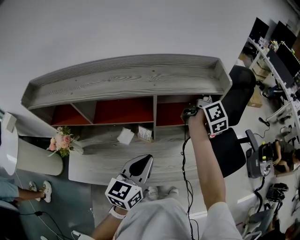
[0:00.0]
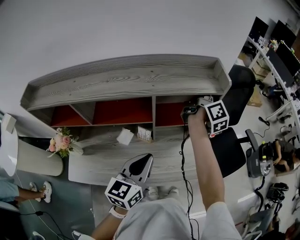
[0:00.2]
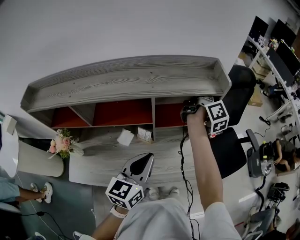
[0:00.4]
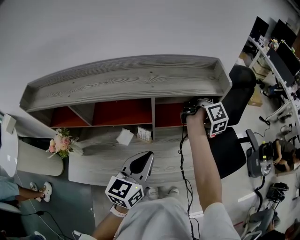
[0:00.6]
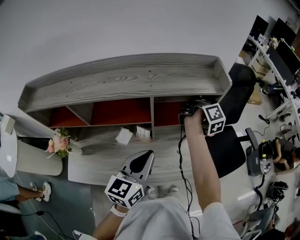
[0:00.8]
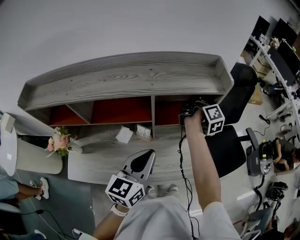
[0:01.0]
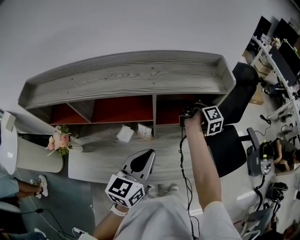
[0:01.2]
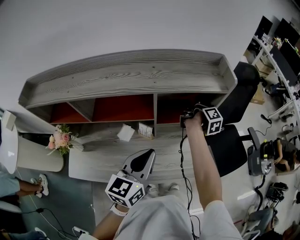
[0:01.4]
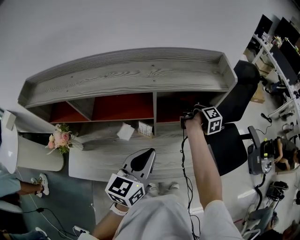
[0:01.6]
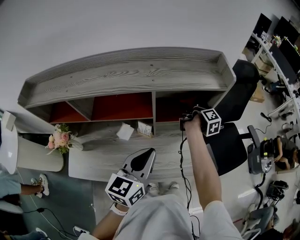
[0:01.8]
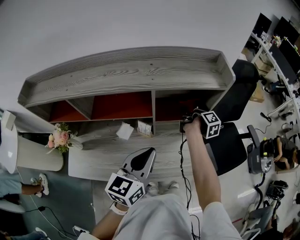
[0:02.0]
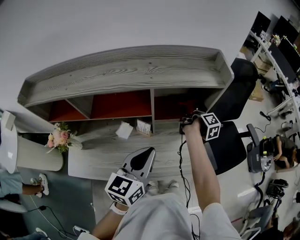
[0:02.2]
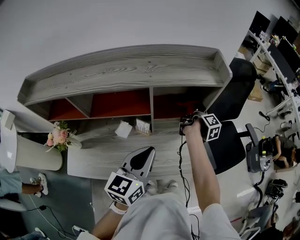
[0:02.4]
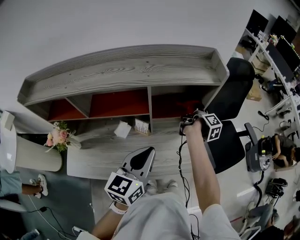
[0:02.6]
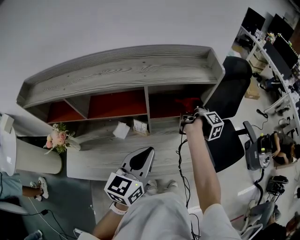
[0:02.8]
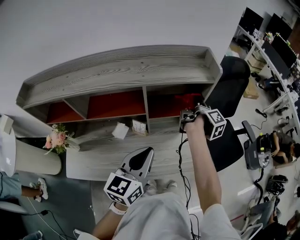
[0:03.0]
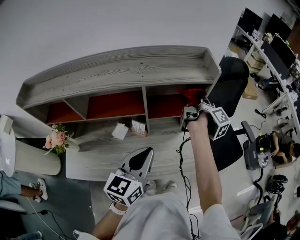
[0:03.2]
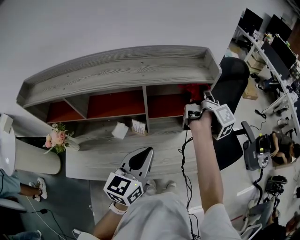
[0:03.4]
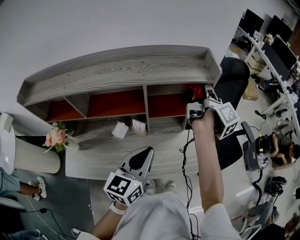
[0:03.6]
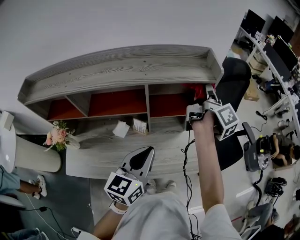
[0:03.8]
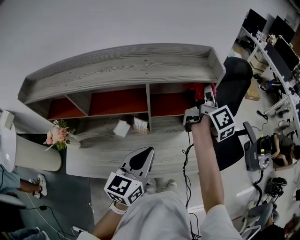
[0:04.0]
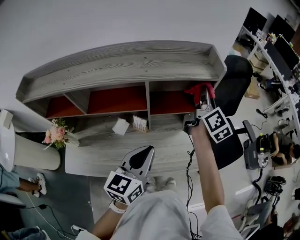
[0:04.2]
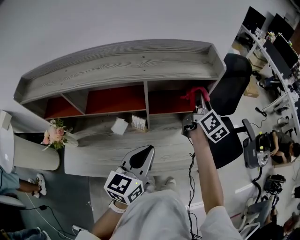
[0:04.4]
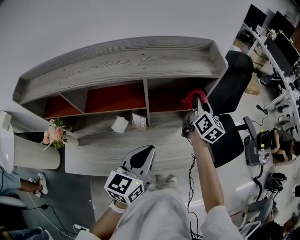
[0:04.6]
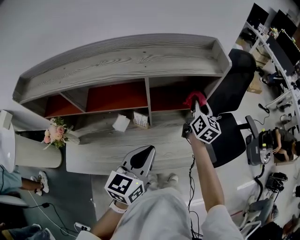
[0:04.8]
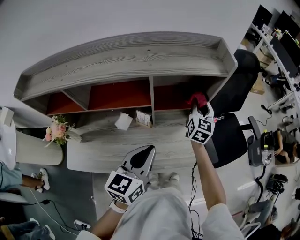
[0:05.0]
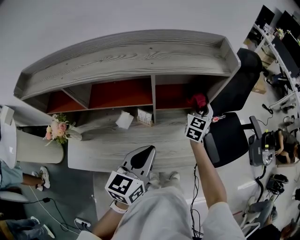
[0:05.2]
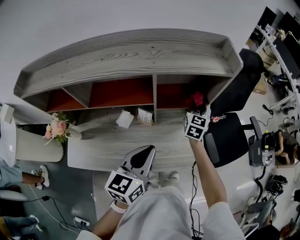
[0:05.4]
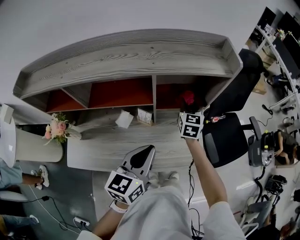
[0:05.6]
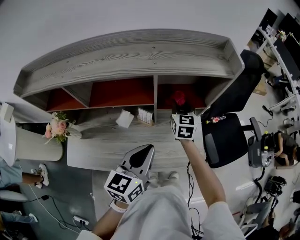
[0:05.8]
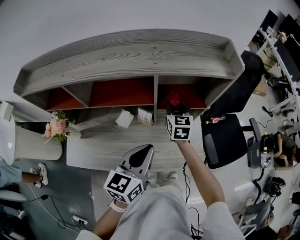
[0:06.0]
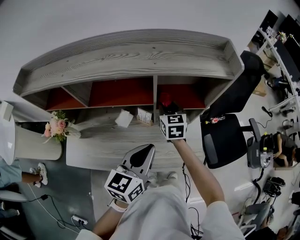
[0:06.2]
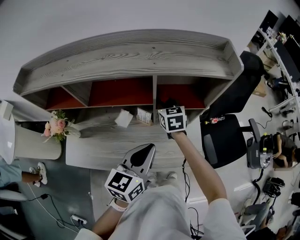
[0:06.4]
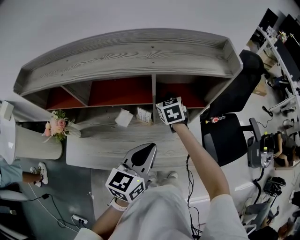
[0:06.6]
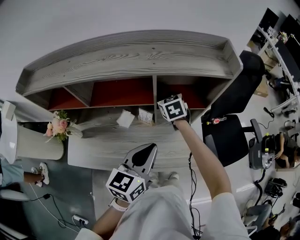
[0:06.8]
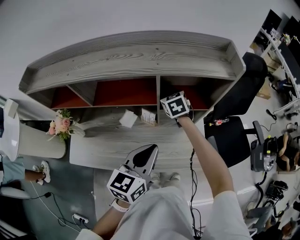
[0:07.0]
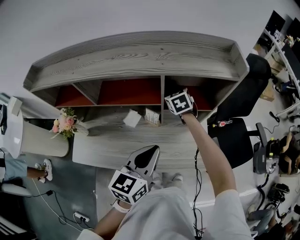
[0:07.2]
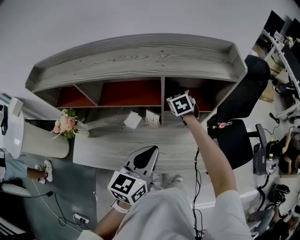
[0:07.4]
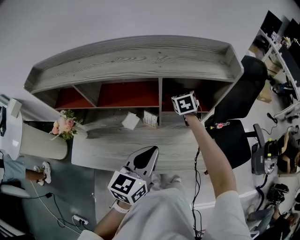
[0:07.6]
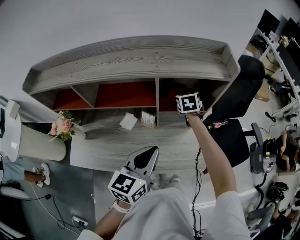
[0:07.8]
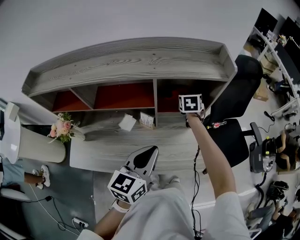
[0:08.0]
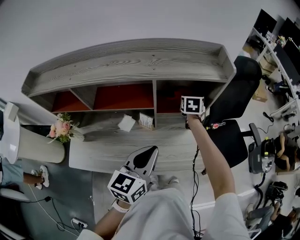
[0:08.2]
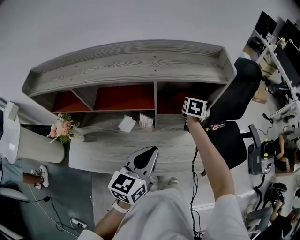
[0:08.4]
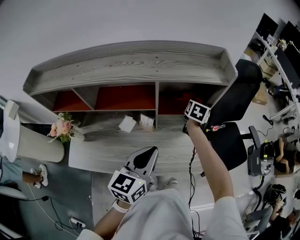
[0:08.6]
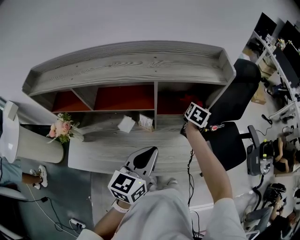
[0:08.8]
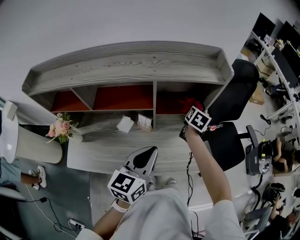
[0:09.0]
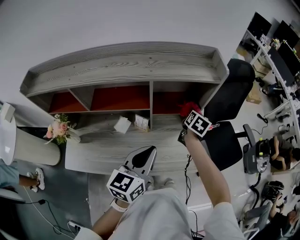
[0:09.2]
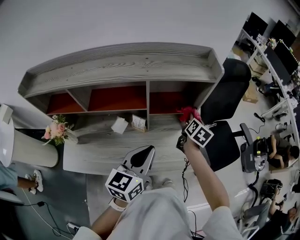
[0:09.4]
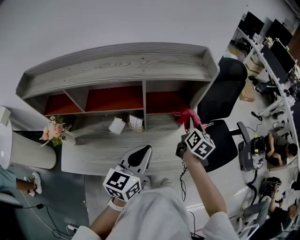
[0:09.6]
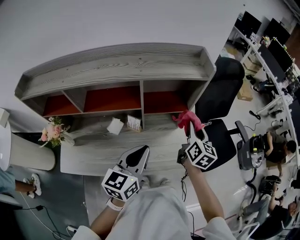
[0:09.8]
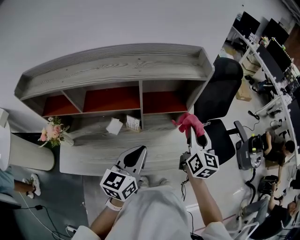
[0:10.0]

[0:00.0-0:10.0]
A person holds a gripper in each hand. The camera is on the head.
0:00.0 to 0:01.4: The right gripper travels downward by about 15 cm, and swivels about 30 degrees.
0:01.4 to 0:02.8: The right gripper goes approximately 5 cm backward.
0:02.8 to 0:04.2: The right gripper heads upward, covering roughly 15 cm, and rotates around the line of its fingers by some 40 degrees, counterclockwise from behind.
0:04.2 to 0:05.8: The right gripper goes some 25 cm downward and to the left, and rolls counterclockwise, seen from behind, by about 50 degrees.
0:05.8 to 0:07.2: The right gripper shifts some 10 cm to the left, and swivels about 30 degrees.
0:07.2 to 0:08.6: The right gripper heads to the right, covering approximately 20 cm, and turns by roughly 50 degrees.
0:08.6 to 0:10.0: The right gripper goes approximately 25 cm backward, upward and to the right, and tilts its fingers approximately 30 degrees upward.

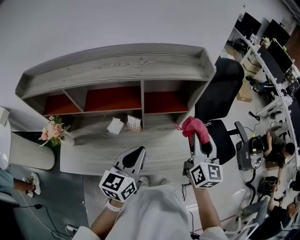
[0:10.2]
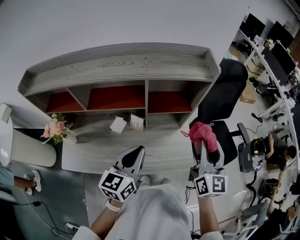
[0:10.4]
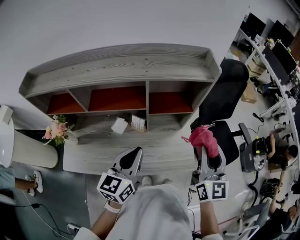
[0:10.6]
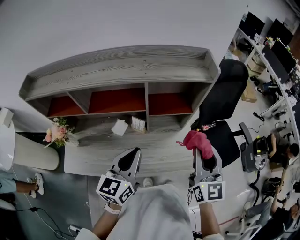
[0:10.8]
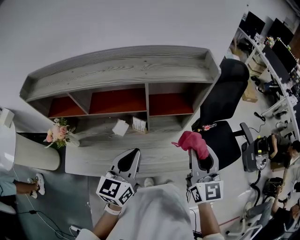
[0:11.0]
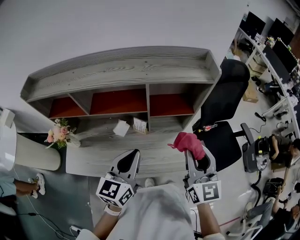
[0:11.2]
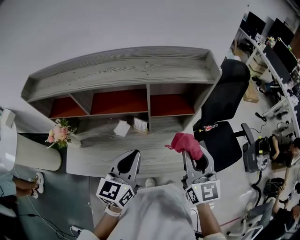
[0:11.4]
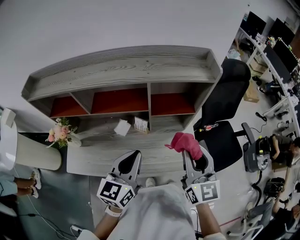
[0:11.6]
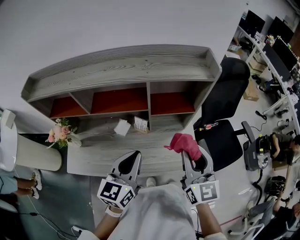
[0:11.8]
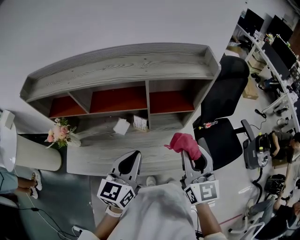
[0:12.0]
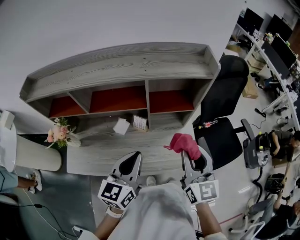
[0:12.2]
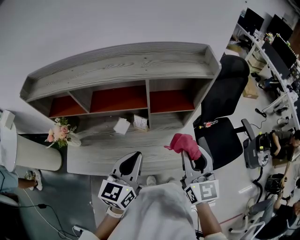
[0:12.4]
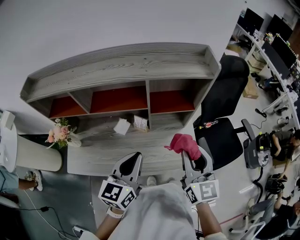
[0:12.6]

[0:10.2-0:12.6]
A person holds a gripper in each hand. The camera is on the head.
0:10.2 to 0:11.4: The right gripper travels to the left and backward by about 10 cm.
0:11.4 to 0:12.6: The grippers make only small movements.

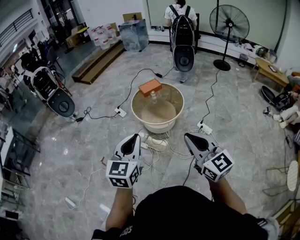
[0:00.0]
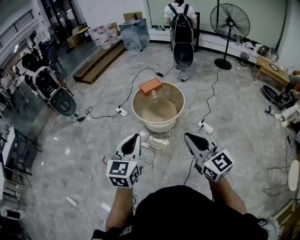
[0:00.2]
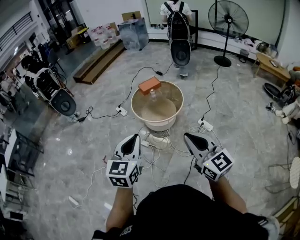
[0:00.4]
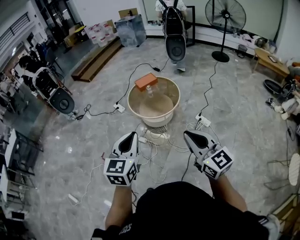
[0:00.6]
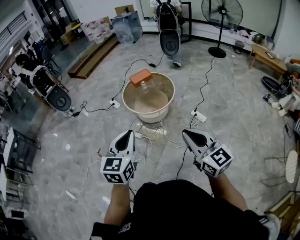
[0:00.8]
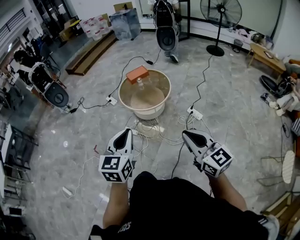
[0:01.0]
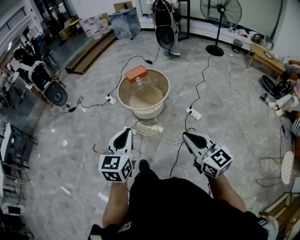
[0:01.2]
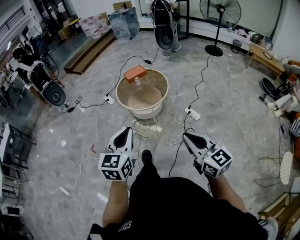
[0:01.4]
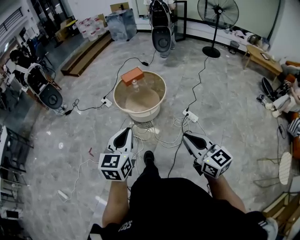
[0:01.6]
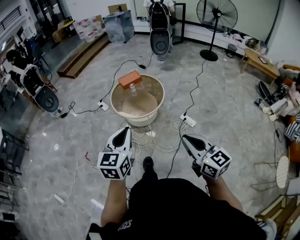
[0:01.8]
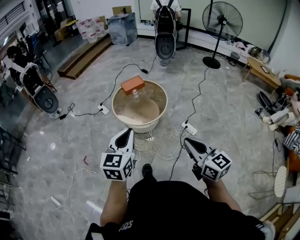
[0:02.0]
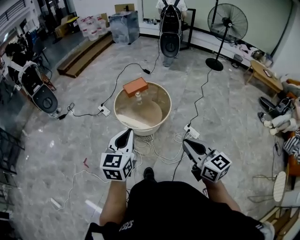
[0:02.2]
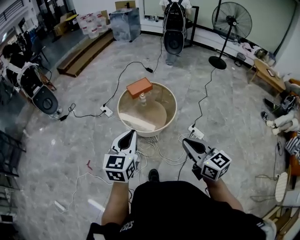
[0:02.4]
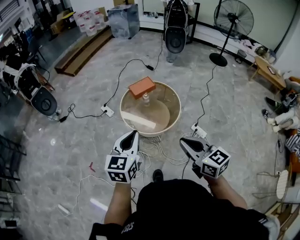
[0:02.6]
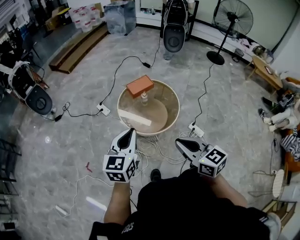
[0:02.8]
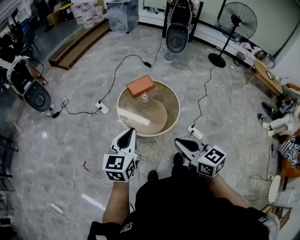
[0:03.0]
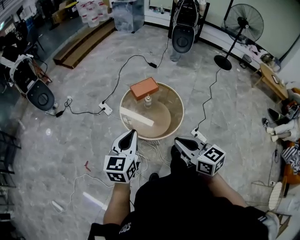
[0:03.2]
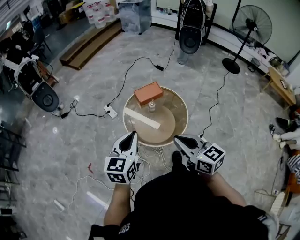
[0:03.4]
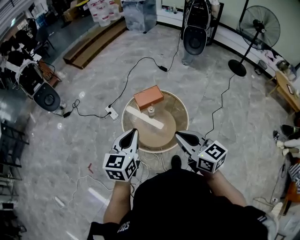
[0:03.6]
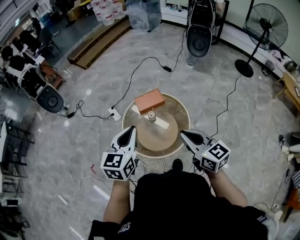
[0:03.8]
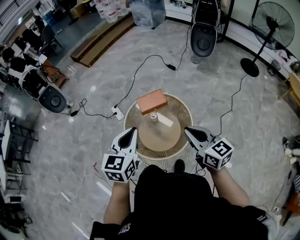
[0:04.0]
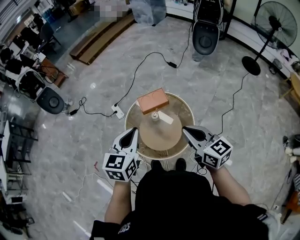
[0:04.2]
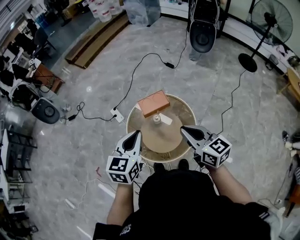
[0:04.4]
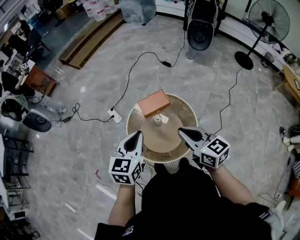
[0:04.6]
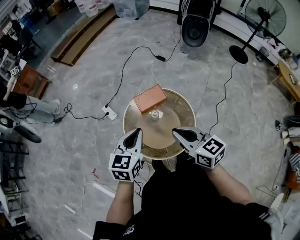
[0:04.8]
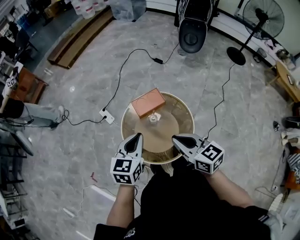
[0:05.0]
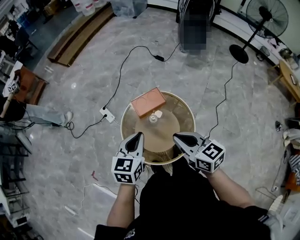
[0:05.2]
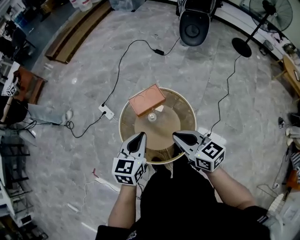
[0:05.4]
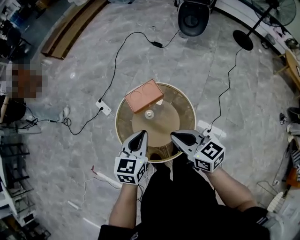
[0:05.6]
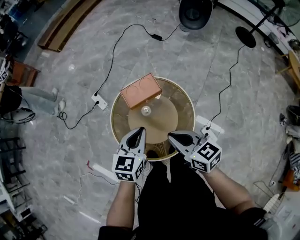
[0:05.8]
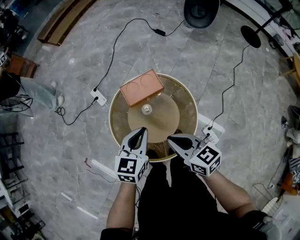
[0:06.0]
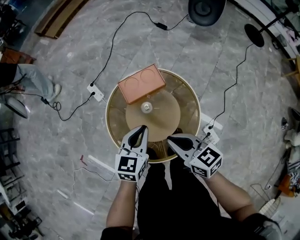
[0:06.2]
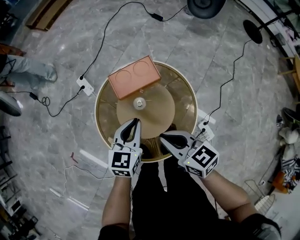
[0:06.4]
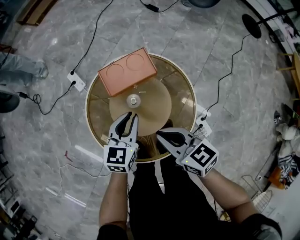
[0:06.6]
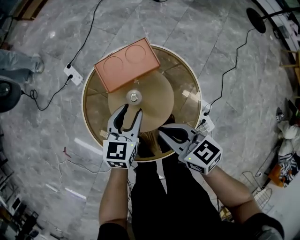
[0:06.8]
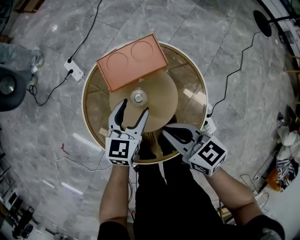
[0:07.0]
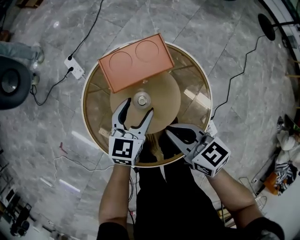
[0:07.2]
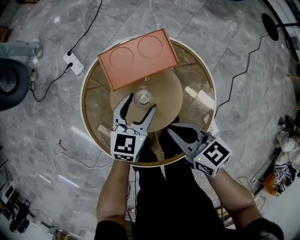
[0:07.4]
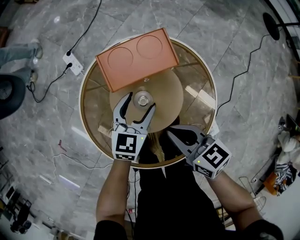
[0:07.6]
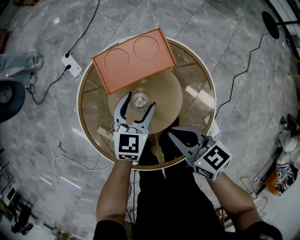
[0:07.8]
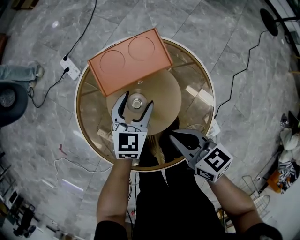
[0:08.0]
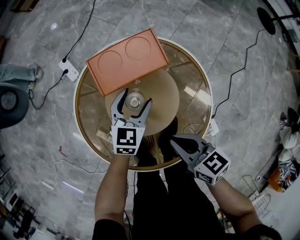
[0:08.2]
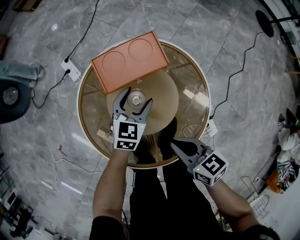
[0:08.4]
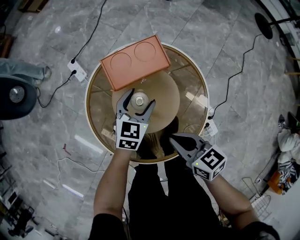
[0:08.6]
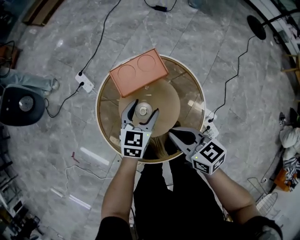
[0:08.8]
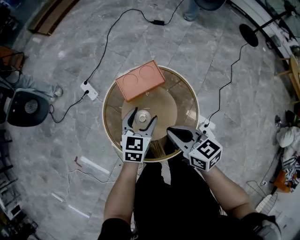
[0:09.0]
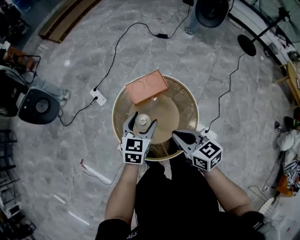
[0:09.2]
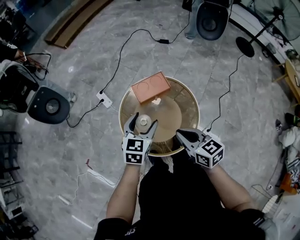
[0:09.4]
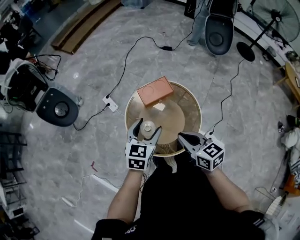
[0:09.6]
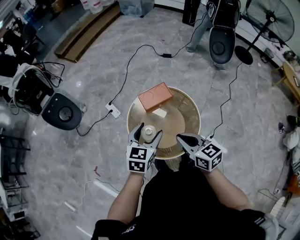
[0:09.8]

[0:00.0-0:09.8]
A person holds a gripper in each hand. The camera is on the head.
0:00.0 to 0:01.4: The grippers both shift to the right and backward by approximately 15 cm.
0:01.4 to 0:02.8: Both grippers are carried forward, some 40 cm.
0:02.8 to 0:04.2: Both grippers travel together forward and to the right, some 40 cm.
0:04.2 to 0:05.6: Both grippers travel together downward and forward, about 20 cm.
0:05.6 to 0:07.0: Both grippers move downward, about 35 cm. The left gripper opens.
0:07.0 to 0:08.4: The right gripper goes approximately 10 cm downward and backward. The left gripper travels downward by approximately 10 cm.
0:08.4 to 0:09.8: The two grippers go approximately 40 cm upward. The right gripper turns by roughly 20 degrees.

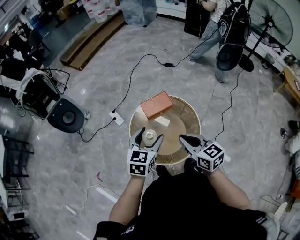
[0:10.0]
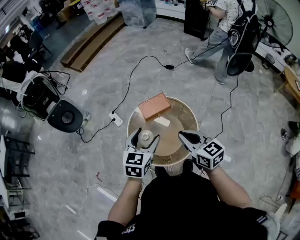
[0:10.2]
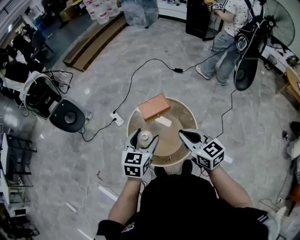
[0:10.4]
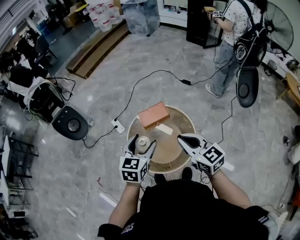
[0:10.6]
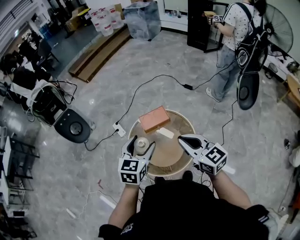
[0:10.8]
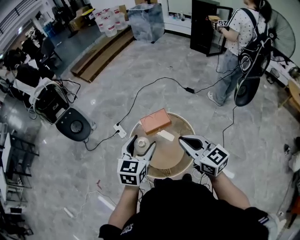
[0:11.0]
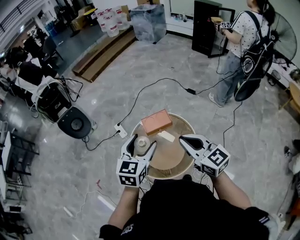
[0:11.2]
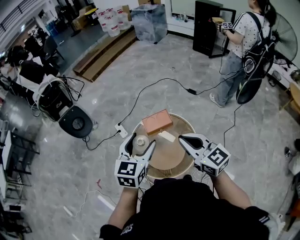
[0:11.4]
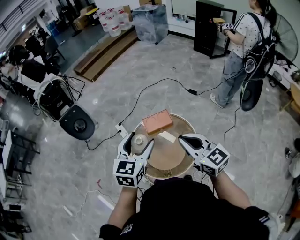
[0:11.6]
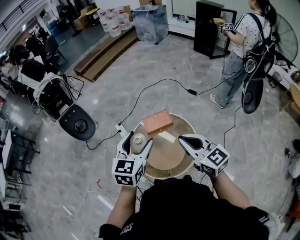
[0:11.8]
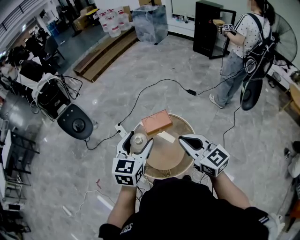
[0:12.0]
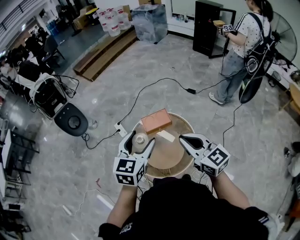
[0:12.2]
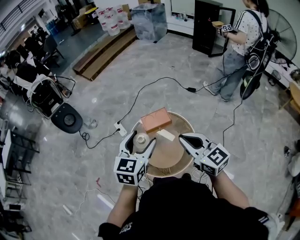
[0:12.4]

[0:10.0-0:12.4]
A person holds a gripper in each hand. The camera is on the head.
0:10.0 to 0:11.2: Both grippers move upward, some 15 cm. The right gripper rotates some 20 degrees.
0:11.2 to 0:12.4: The grippers move only a little.
